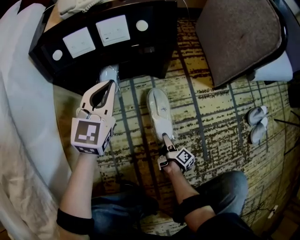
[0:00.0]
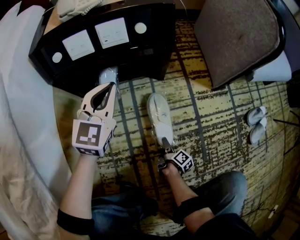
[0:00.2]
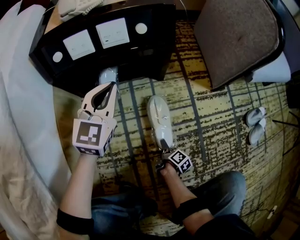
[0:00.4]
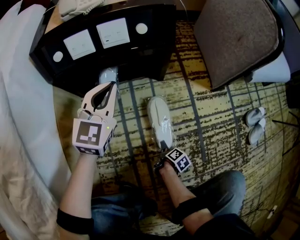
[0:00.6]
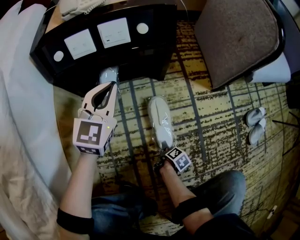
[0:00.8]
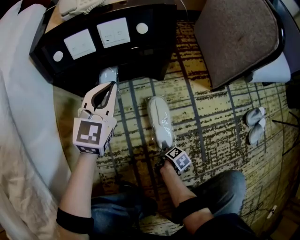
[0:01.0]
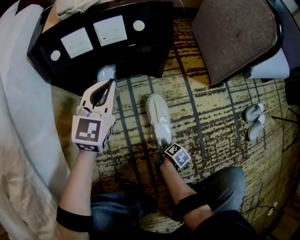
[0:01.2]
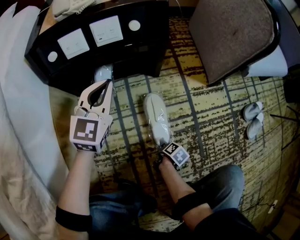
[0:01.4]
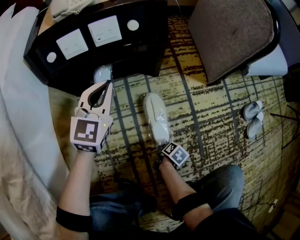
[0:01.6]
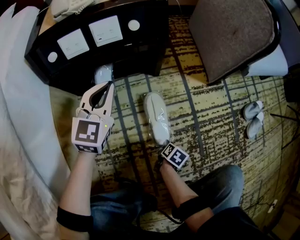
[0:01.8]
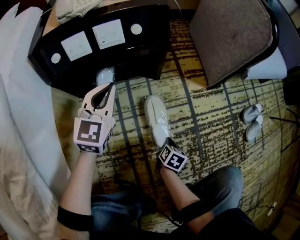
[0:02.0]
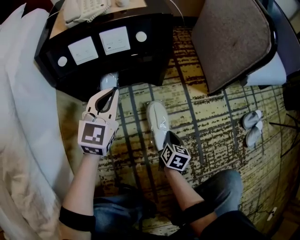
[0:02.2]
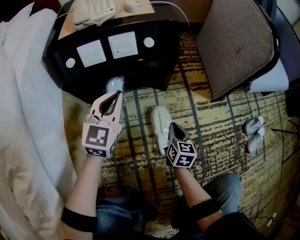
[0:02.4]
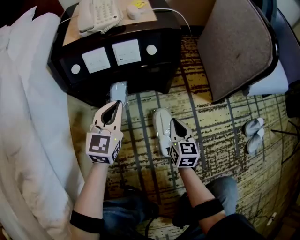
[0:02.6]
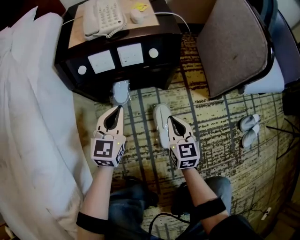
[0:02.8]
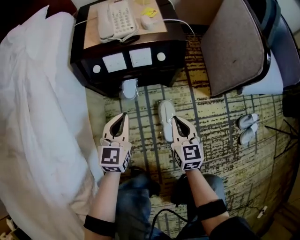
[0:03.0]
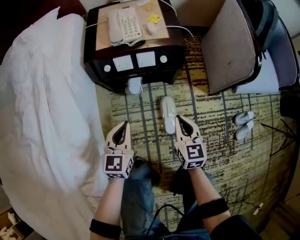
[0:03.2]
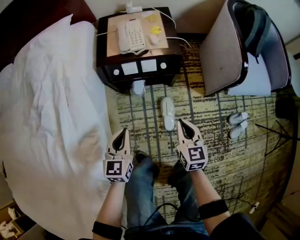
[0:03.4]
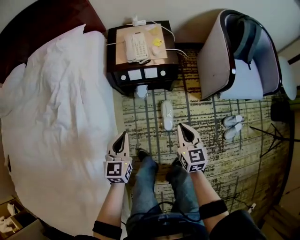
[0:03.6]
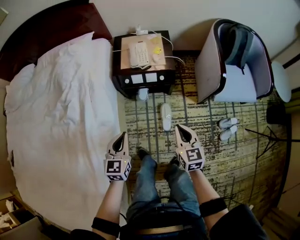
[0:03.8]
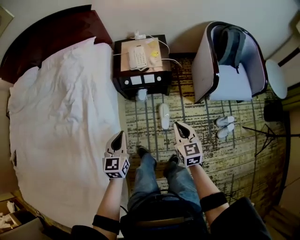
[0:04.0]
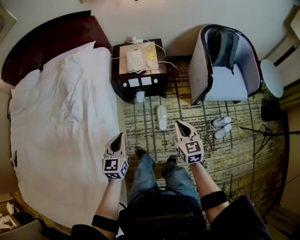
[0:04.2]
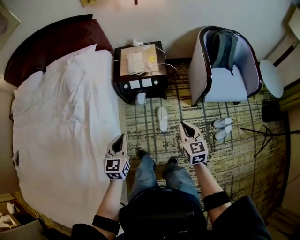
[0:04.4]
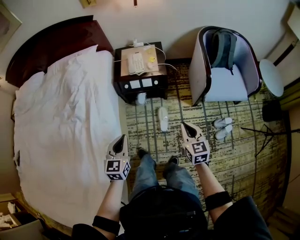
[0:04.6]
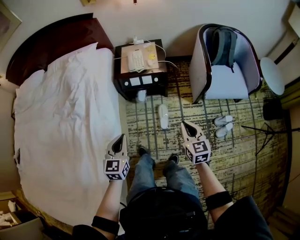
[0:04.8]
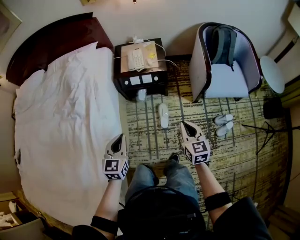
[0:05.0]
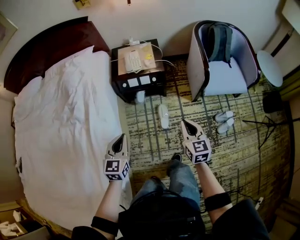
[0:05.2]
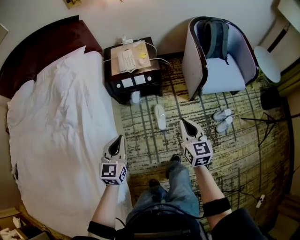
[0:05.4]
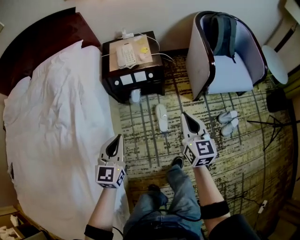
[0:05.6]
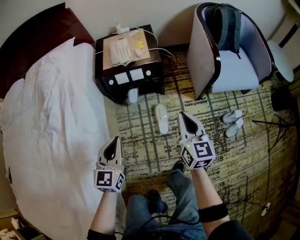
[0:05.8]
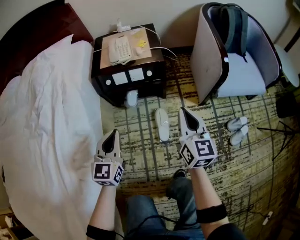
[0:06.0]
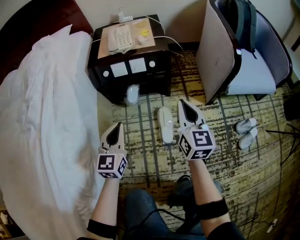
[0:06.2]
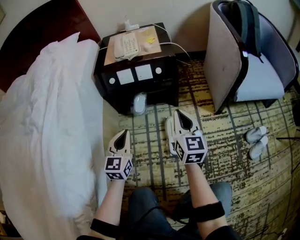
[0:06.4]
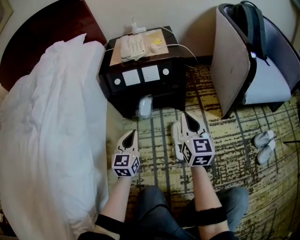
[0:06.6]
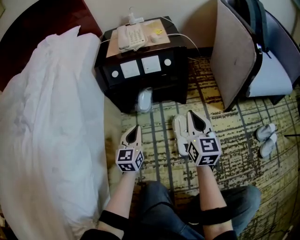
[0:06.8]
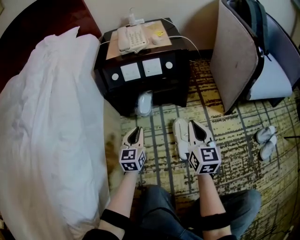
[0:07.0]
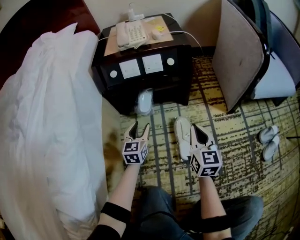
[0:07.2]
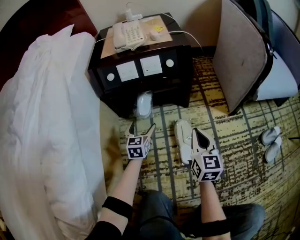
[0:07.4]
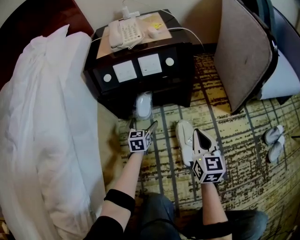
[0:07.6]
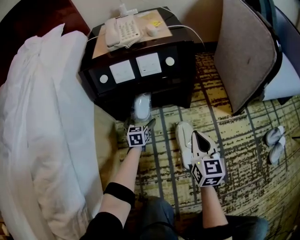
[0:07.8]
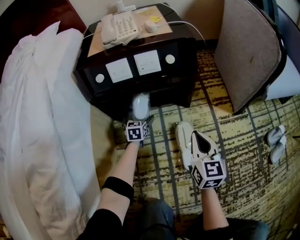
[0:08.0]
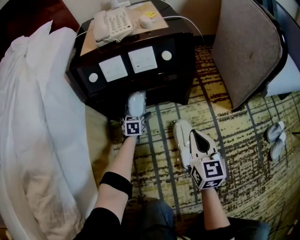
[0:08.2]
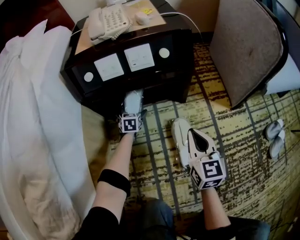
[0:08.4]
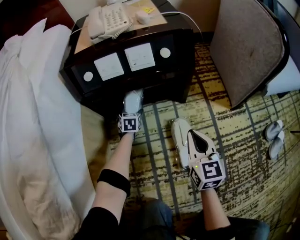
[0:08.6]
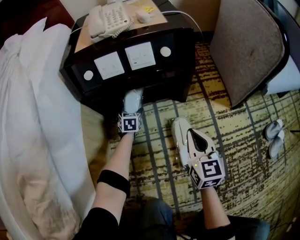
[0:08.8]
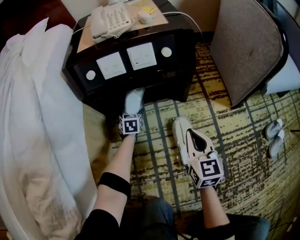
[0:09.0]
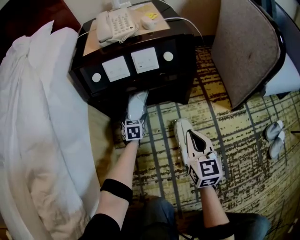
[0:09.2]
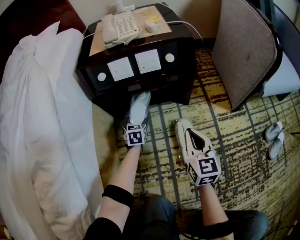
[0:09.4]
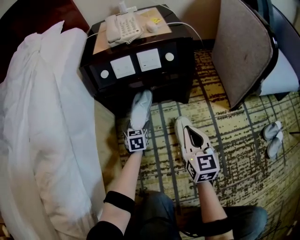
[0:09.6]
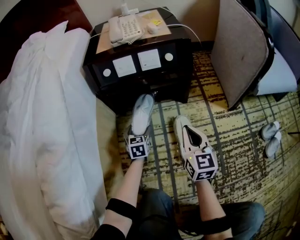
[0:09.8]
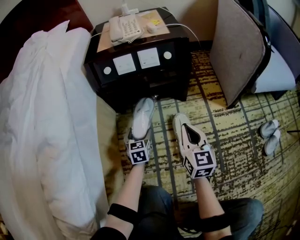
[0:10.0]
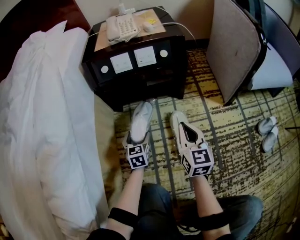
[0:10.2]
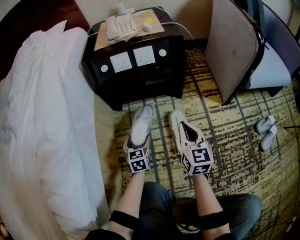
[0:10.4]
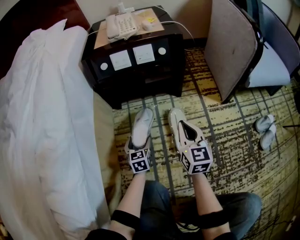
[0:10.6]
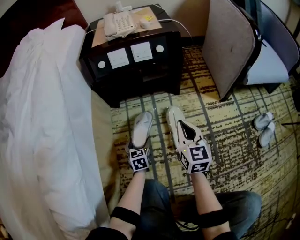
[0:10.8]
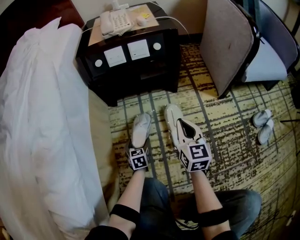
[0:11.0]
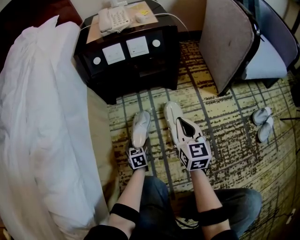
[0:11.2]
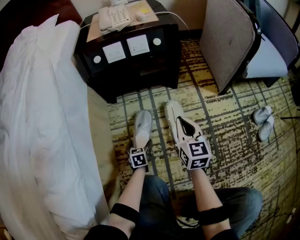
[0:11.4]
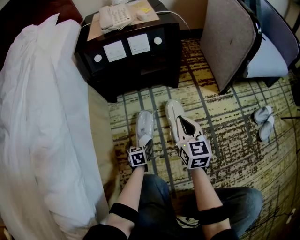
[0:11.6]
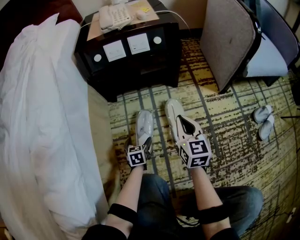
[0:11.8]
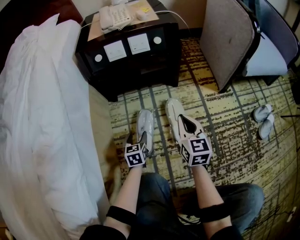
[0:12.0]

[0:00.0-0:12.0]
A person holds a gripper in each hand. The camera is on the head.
0:00.0 to 0:01.6: The right gripper travels backward by about 5 cm, and tilts its fingers approximately 40 degrees downward.
0:01.6 to 0:03.0: The left gripper is displaced upward and backward by some 15 cm. The right gripper travels upward by roughly 40 cm, rolls counterclockwise, seen from behind, by roughly 60 degrees, and closes up.
0:03.0 to 0:04.4: The grippers both shift upward and backward by some 50 cm.
0:04.4 to 0:06.0: Both grippers travel together downward and forward, approximately 25 cm. The right gripper rotates about 20 degrees.
0:06.0 to 0:07.6: The right gripper moves downward, approximately 35 cm; the left gripper is displaced downward and forward by some 50 cm, and opens up.
0:07.6 to 0:09.0: The left gripper travels forward and downward by about 10 cm. Meanwhile the right gripper changes place by approximately 5 cm.
0:09.0 to 0:10.4: The right gripper moves backward and upward, some 10 cm; the left gripper travels backward by roughly 25 cm.

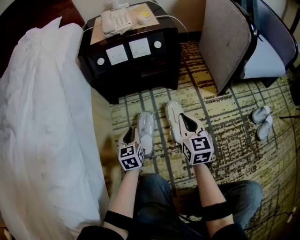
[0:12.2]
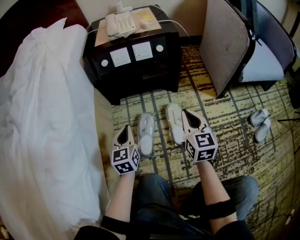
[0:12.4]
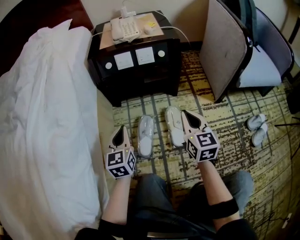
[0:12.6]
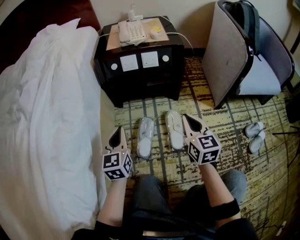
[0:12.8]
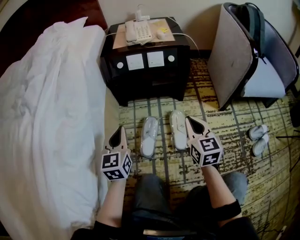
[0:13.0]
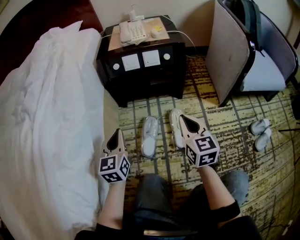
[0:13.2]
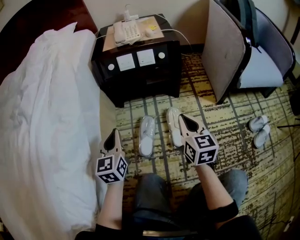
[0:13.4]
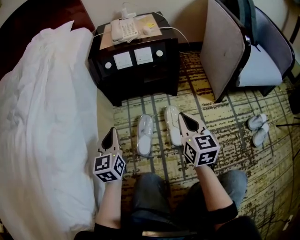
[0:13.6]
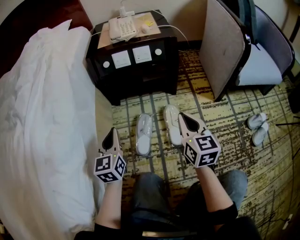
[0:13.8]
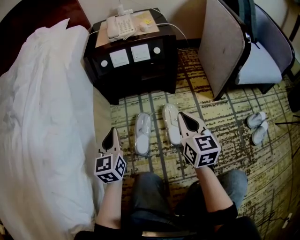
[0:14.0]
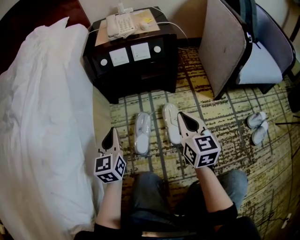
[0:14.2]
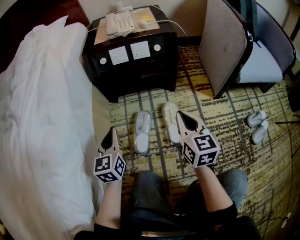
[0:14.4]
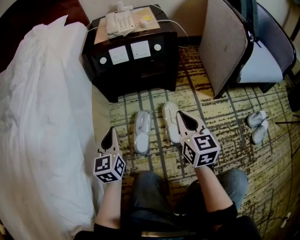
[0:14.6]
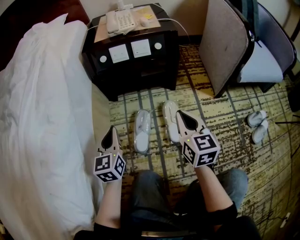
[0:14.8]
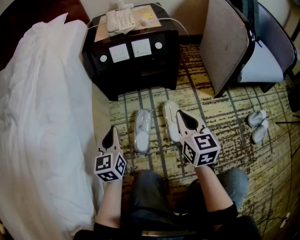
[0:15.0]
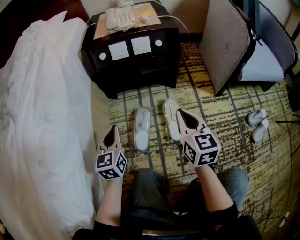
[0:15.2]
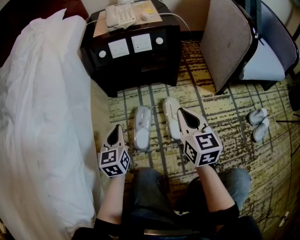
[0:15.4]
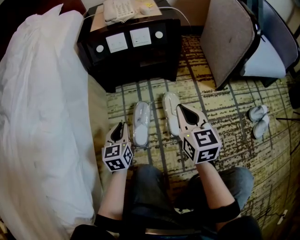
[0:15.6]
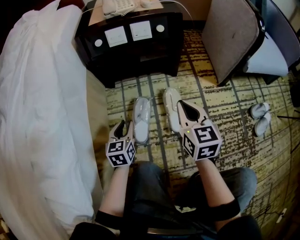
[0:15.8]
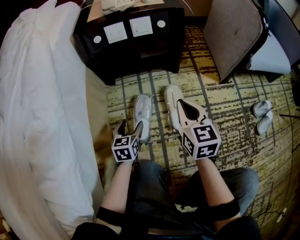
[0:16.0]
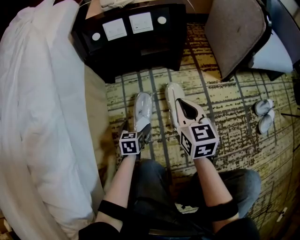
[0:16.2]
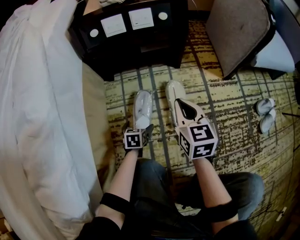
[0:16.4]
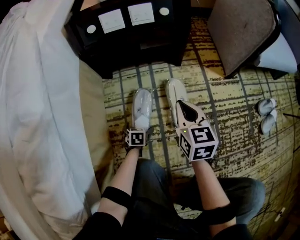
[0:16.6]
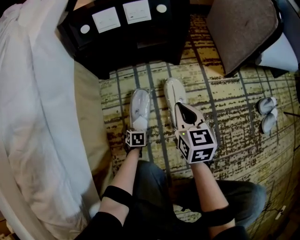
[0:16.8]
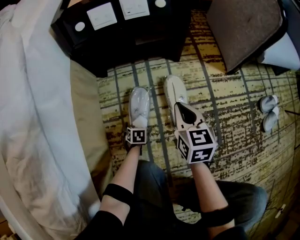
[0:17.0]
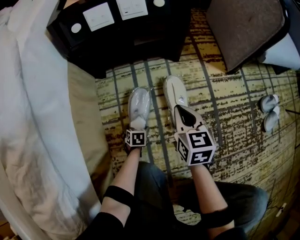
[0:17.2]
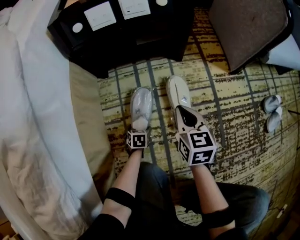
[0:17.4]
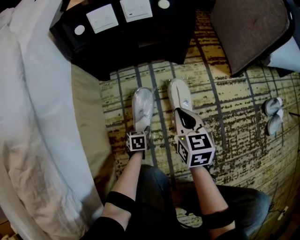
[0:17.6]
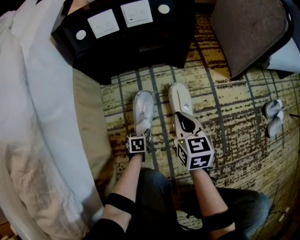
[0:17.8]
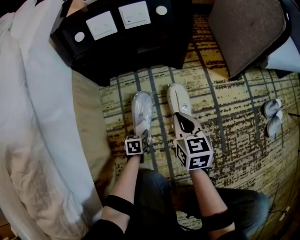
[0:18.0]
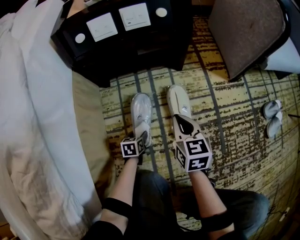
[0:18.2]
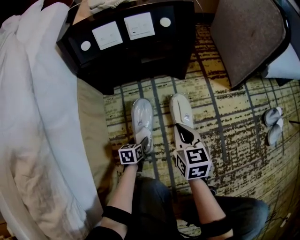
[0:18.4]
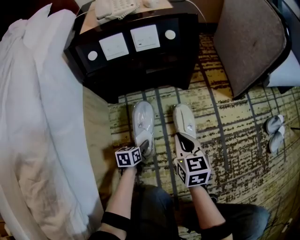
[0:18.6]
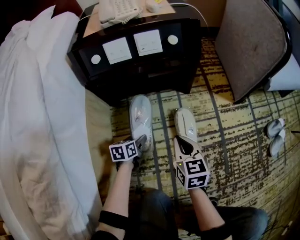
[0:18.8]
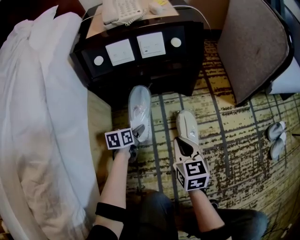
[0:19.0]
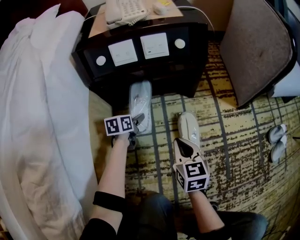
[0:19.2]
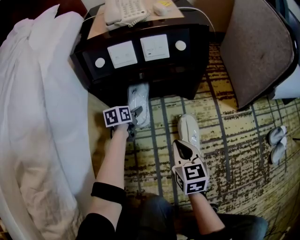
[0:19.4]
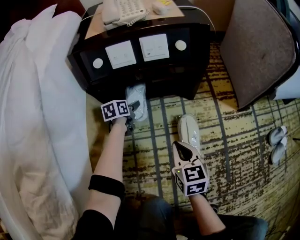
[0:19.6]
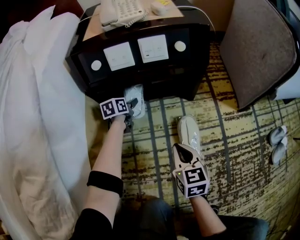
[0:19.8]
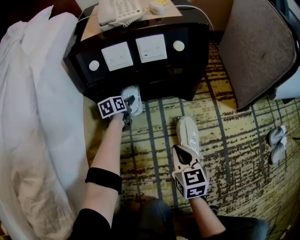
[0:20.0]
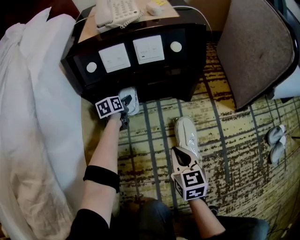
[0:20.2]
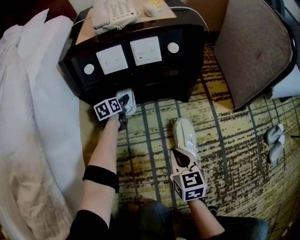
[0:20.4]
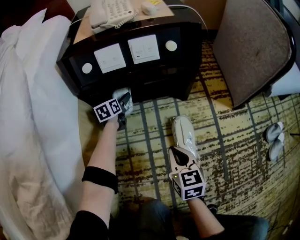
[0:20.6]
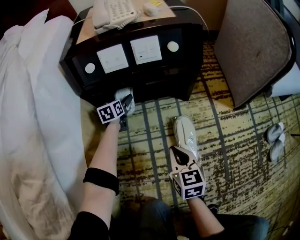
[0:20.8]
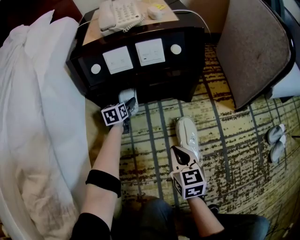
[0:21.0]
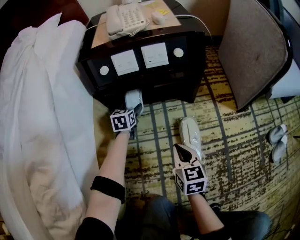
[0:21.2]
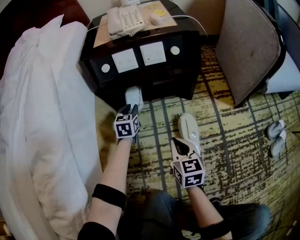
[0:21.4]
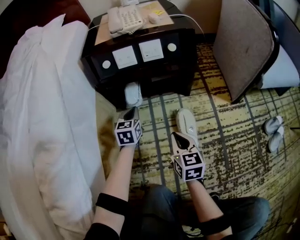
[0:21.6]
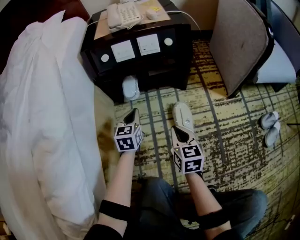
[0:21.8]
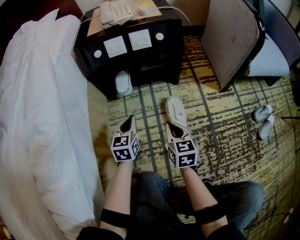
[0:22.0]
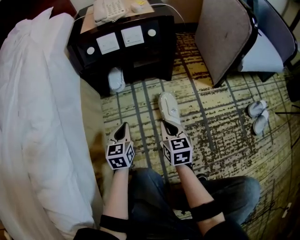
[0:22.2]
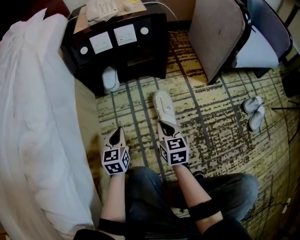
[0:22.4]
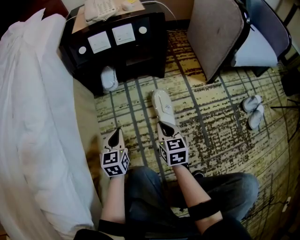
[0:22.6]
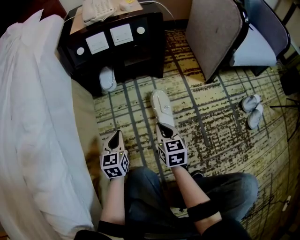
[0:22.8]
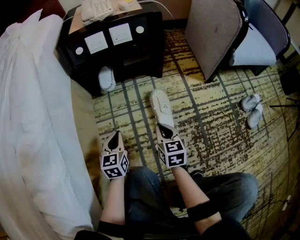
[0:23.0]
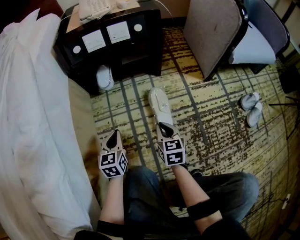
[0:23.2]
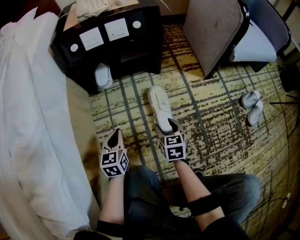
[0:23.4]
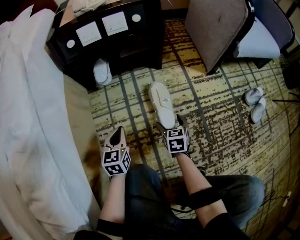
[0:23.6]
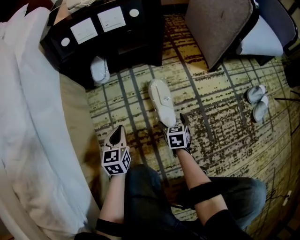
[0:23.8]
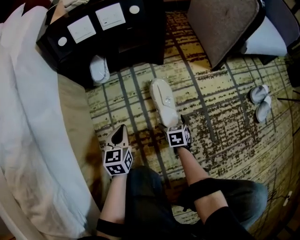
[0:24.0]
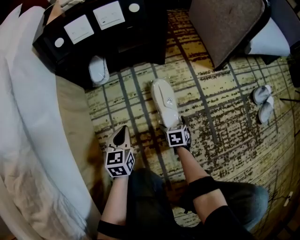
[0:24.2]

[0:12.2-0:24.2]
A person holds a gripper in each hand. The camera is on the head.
0:12.2 to 0:13.8: The right gripper is displaced upward by some 10 cm; the left gripper is displaced upward by roughly 15 cm.
0:13.8 to 0:15.2: The grippers stay close to where they were, moving slightly.
0:15.2 to 0:16.6: The right gripper travels downward by about 10 cm, while the left gripper shifts about 35 cm downward, angles its fingers downward, by roughly 40 degrees, and opens.
0:16.6 to 0:18.2: The right gripper moves downward, approximately 5 cm; the left gripper closes.
0:18.2 to 0:19.8: The left gripper shifts about 35 cm forward and upward.
0:19.8 to 0:21.2: The left gripper ends up approximately 5 cm from where it was, and changes its angle by some 20 degrees.
0:21.2 to 0:22.6: The left gripper is displaced backward by approximately 30 cm, and closes its fingers; the right gripper heads backward, covering about 10 cm.
0:22.6 to 0:24.2: The right gripper goes roughly 25 cm downward, rotates some 30 degrees, and opens; the left gripper heads downward, covering roughly 10 cm.
